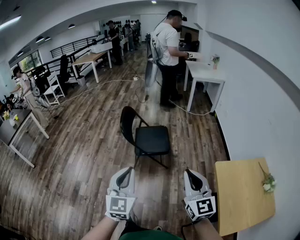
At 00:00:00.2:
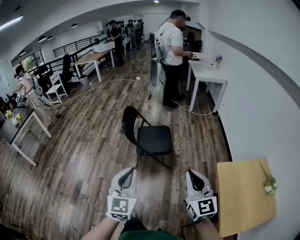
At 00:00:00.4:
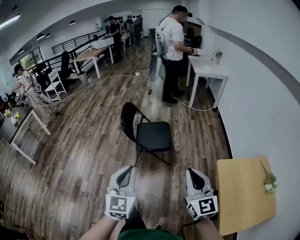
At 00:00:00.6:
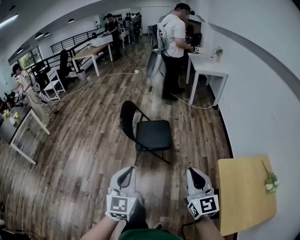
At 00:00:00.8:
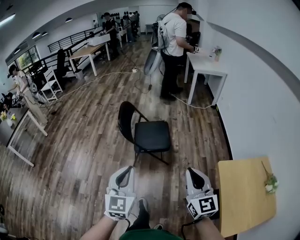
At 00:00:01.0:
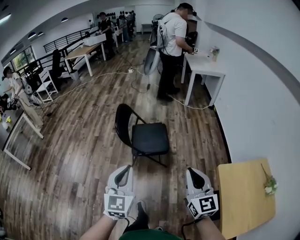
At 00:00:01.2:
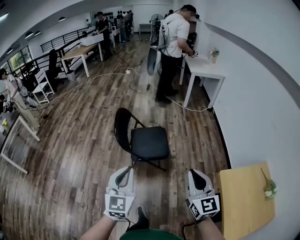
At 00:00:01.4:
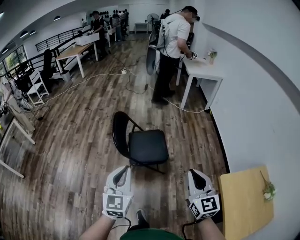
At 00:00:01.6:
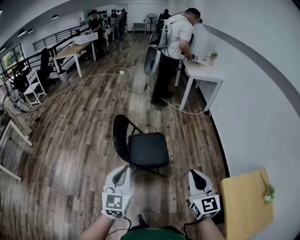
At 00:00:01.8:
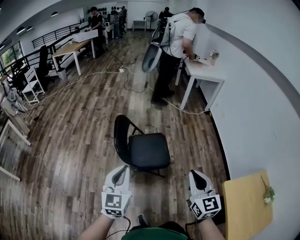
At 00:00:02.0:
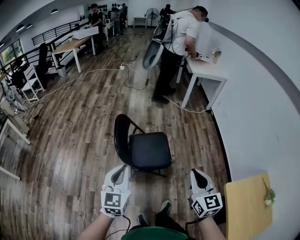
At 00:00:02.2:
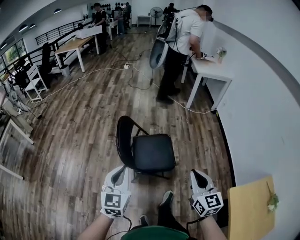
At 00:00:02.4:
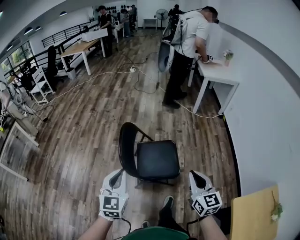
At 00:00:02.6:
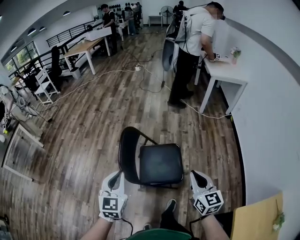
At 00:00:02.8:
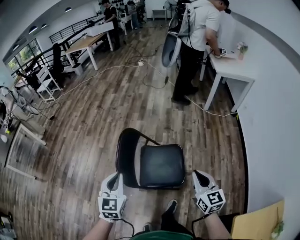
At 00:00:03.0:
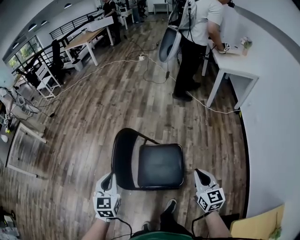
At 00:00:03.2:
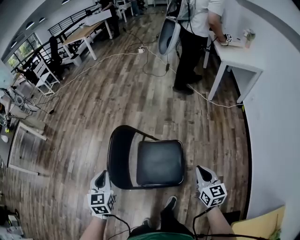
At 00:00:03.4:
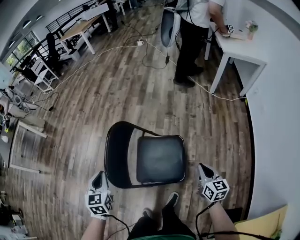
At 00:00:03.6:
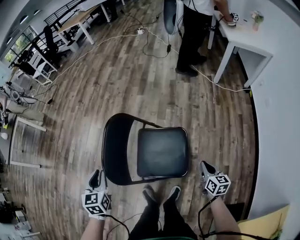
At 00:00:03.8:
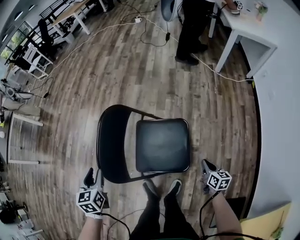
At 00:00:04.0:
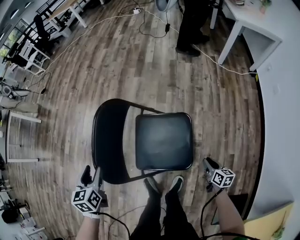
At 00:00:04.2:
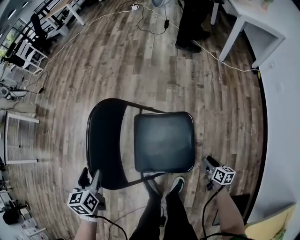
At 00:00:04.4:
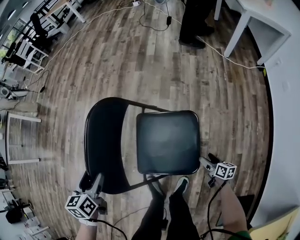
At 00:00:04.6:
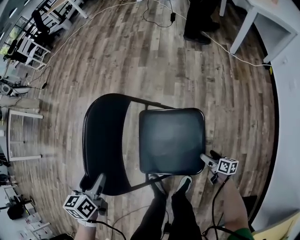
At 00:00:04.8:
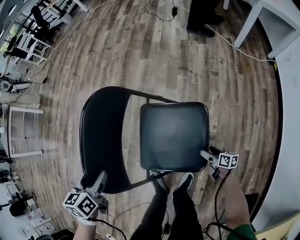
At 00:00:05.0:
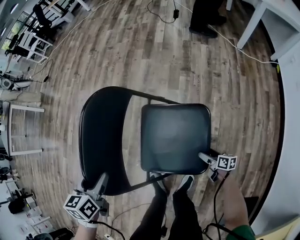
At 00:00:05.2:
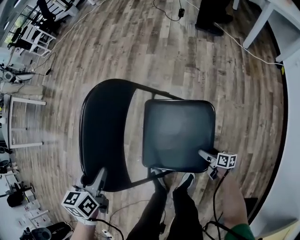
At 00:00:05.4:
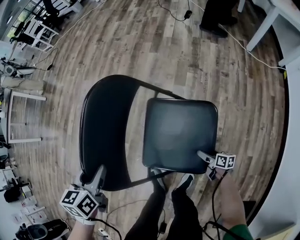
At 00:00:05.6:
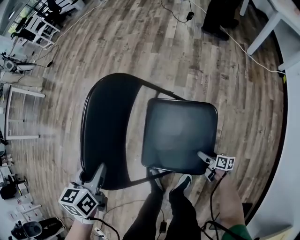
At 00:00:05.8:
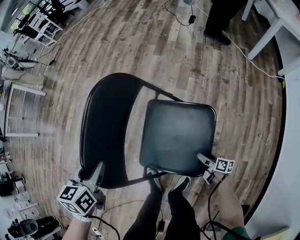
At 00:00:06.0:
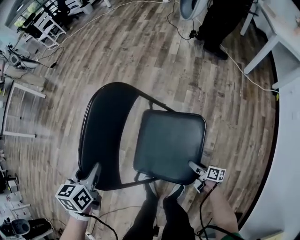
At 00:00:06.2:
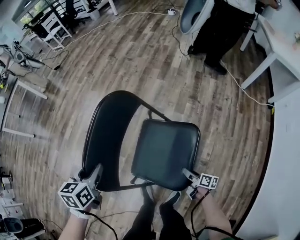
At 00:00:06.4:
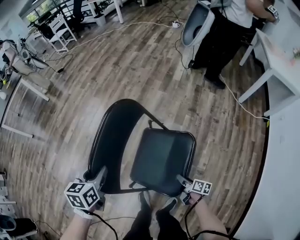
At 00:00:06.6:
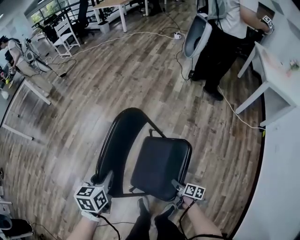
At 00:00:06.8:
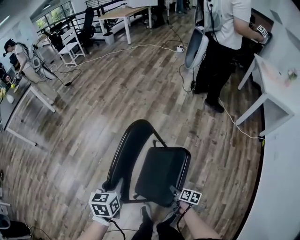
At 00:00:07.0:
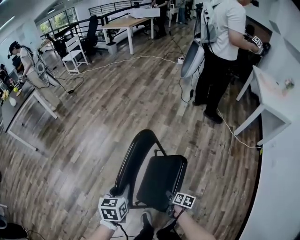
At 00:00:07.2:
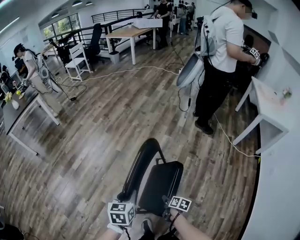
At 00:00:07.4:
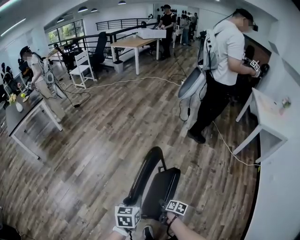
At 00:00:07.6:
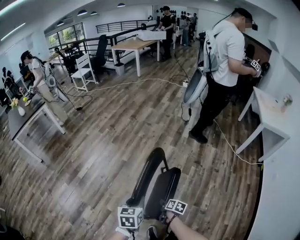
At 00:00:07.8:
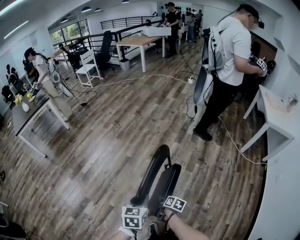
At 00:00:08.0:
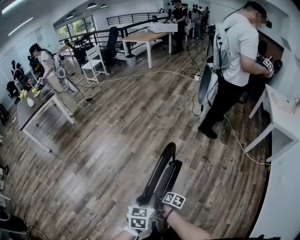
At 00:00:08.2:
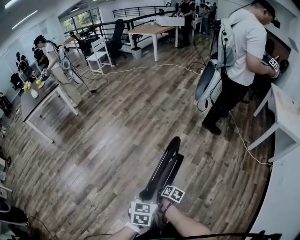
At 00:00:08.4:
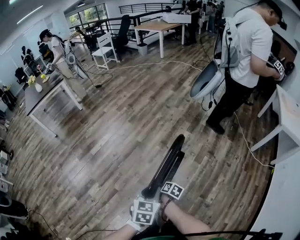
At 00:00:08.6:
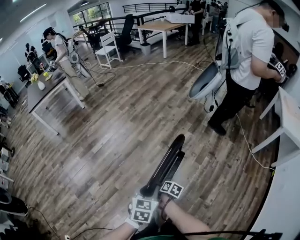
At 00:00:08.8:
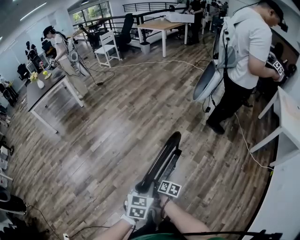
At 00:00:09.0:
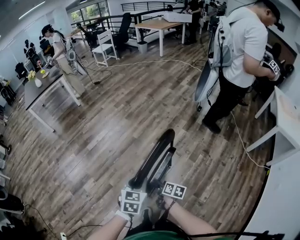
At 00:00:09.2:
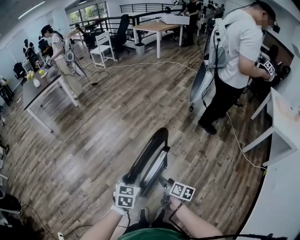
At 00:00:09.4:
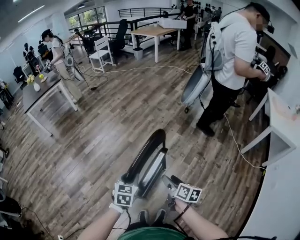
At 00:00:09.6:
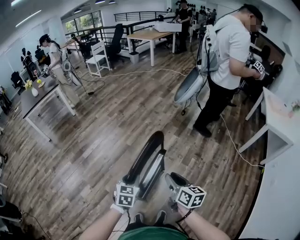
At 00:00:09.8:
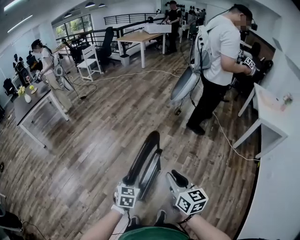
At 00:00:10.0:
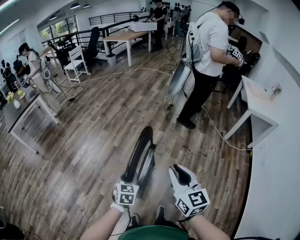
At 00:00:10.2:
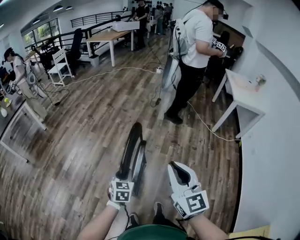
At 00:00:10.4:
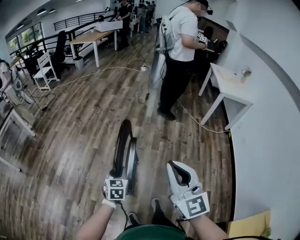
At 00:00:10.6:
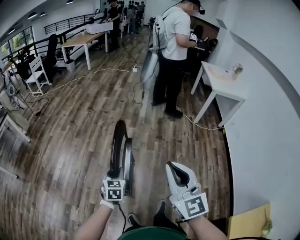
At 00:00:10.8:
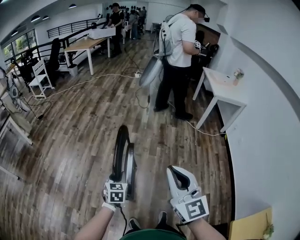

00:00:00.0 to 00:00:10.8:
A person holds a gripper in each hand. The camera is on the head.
00:00:00.0 to 00:00:01.6: Both grippers travel together forward, some 25 cm.
00:00:01.6 to 00:00:03.0: Both grippers travel together forward and downward, some 40 cm. The left gripper turns by roughly 30 degrees. Meanwhile the right gripper swivels approximately 20 degrees.
00:00:03.0 to 00:00:04.6: The left gripper goes roughly 25 cm downward and forward, rotates approximately 30 degrees, and opens its fingers, while the right gripper heads downward, covering about 50 cm, rotates around the line of its fingers by about 50 degrees, clockwise from behind, and opens.
00:00:04.6 to 00:00:06.2: The left gripper moves to the left, roughly 5 cm, and closes its fingers, while the right gripper moves to the left, forward and upward, approximately 15 cm, and closes its fingers.
00:00:06.2 to 00:00:07.8: The right gripper is displaced to the left, upward and forward by roughly 35 cm, and changes its angle by roughly 20 degrees; the left gripper goes some 15 cm upward.
00:00:07.8 to 00:00:09.2: The right gripper moves upward and to the right, about 15 cm, and swivels approximately 20 degrees.
00:00:09.2 to 00:00:10.8: The left gripper turns by roughly 20 degrees. Meanwhile the right gripper moves upward, approximately 40 cm, angles its fingers upward, by roughly 30 degrees, and closes its fingers.

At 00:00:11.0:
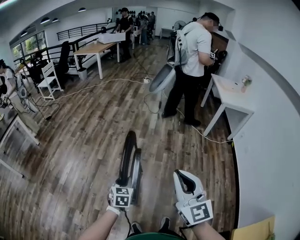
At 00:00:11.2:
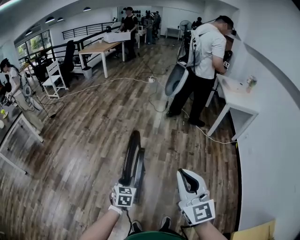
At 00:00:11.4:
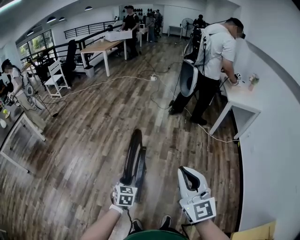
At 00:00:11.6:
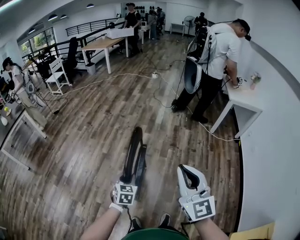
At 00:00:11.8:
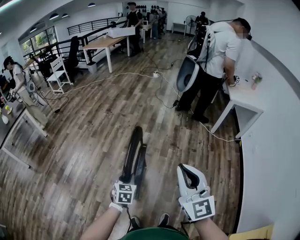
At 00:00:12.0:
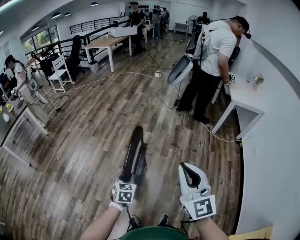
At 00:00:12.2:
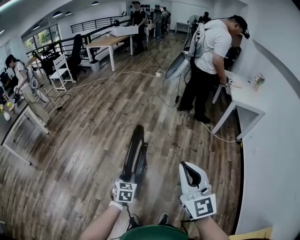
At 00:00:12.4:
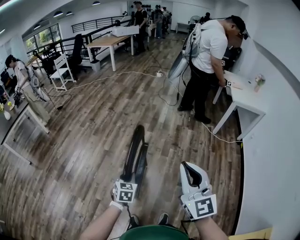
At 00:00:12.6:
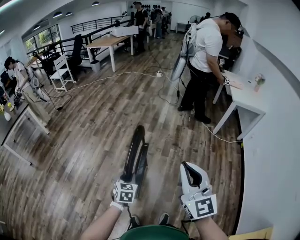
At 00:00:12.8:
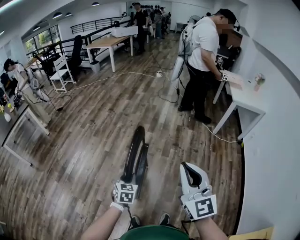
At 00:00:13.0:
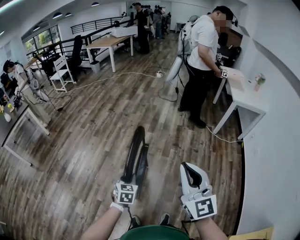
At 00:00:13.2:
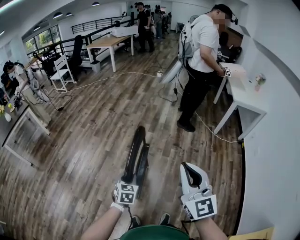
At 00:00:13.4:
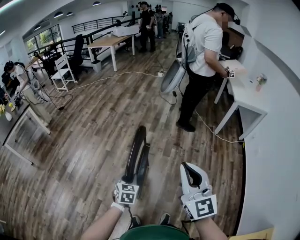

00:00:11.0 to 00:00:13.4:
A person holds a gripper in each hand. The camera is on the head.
00:00:11.0 to 00:00:12.2: The right gripper travels to the right by about 5 cm.
00:00:12.2 to 00:00:13.4: Both grippers stay put.

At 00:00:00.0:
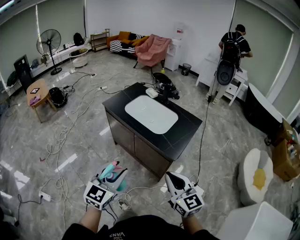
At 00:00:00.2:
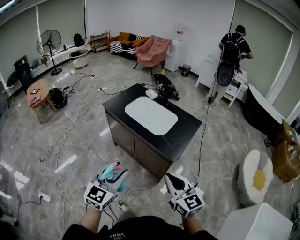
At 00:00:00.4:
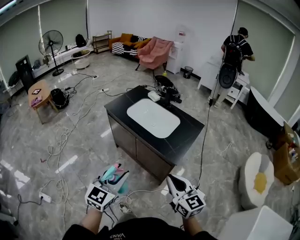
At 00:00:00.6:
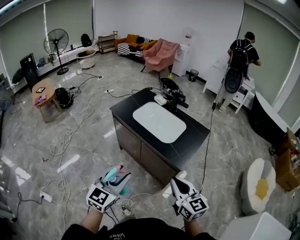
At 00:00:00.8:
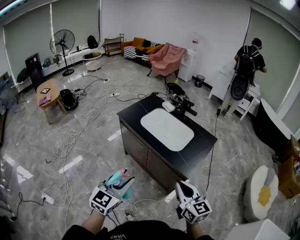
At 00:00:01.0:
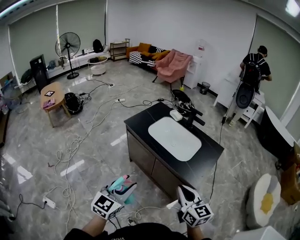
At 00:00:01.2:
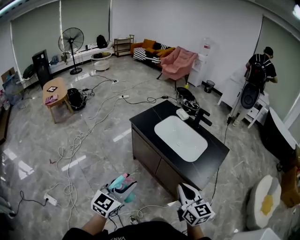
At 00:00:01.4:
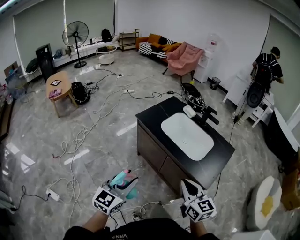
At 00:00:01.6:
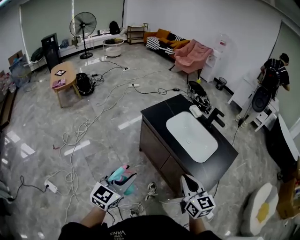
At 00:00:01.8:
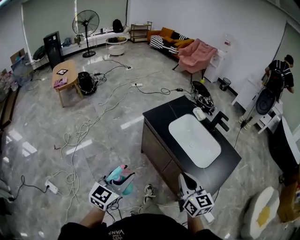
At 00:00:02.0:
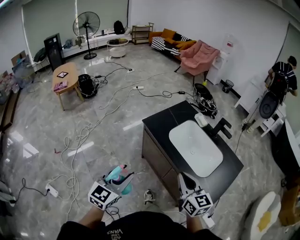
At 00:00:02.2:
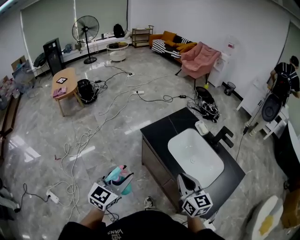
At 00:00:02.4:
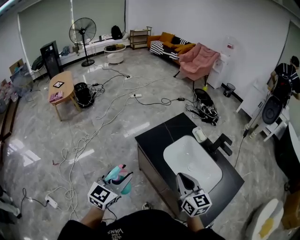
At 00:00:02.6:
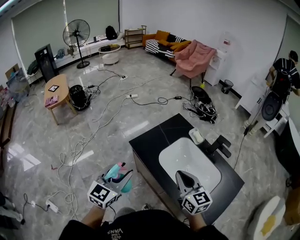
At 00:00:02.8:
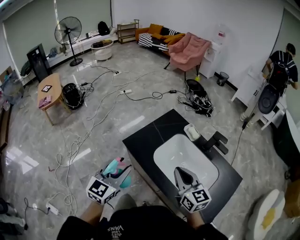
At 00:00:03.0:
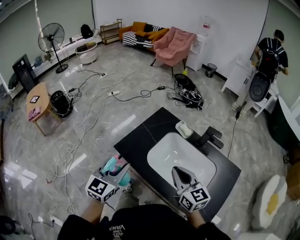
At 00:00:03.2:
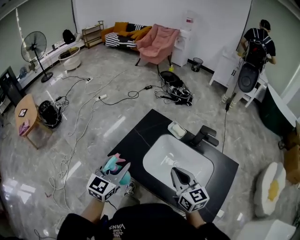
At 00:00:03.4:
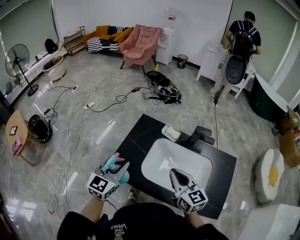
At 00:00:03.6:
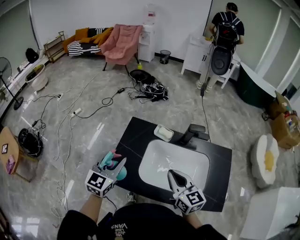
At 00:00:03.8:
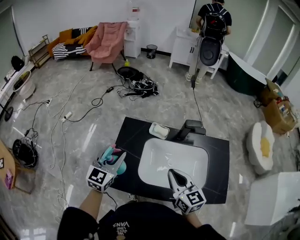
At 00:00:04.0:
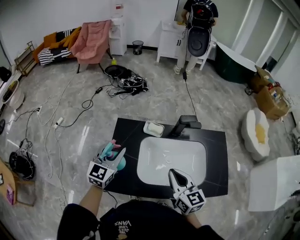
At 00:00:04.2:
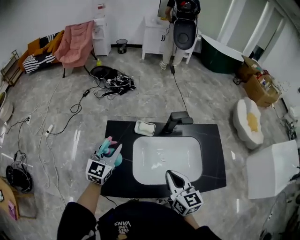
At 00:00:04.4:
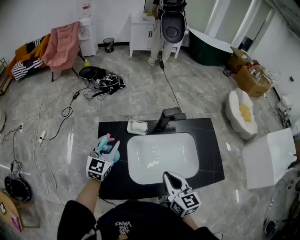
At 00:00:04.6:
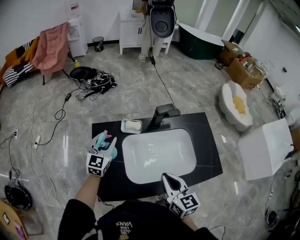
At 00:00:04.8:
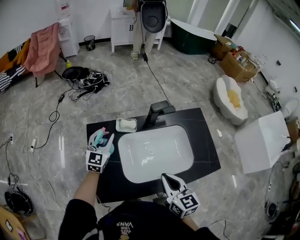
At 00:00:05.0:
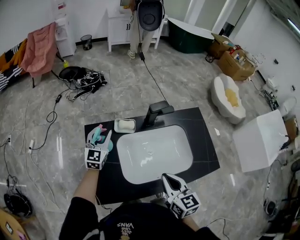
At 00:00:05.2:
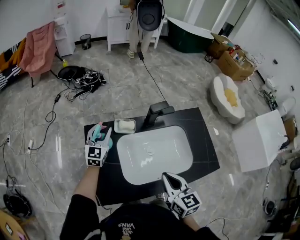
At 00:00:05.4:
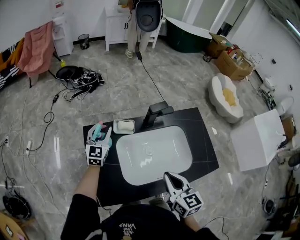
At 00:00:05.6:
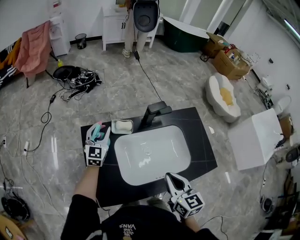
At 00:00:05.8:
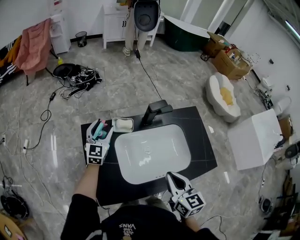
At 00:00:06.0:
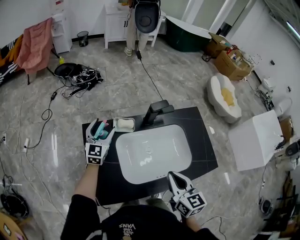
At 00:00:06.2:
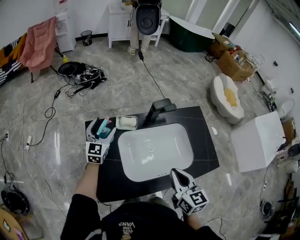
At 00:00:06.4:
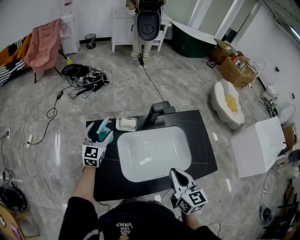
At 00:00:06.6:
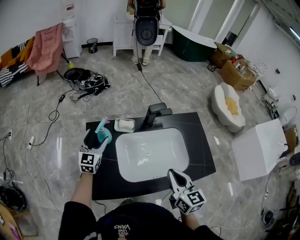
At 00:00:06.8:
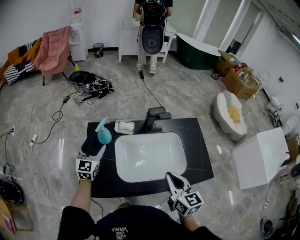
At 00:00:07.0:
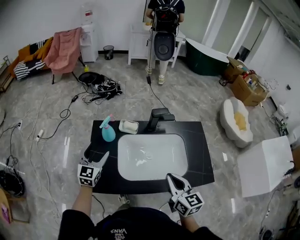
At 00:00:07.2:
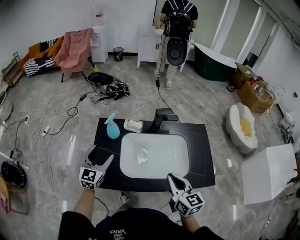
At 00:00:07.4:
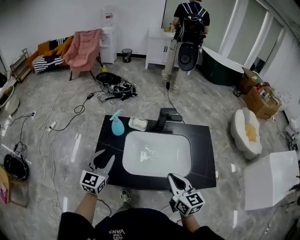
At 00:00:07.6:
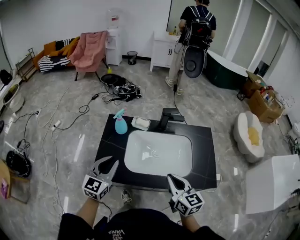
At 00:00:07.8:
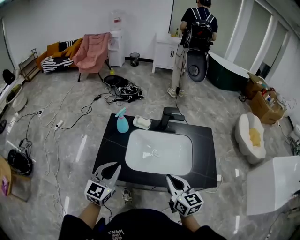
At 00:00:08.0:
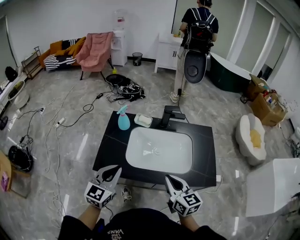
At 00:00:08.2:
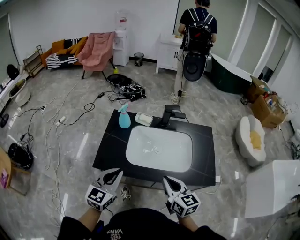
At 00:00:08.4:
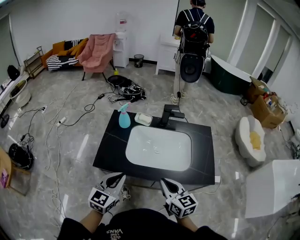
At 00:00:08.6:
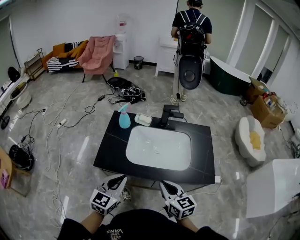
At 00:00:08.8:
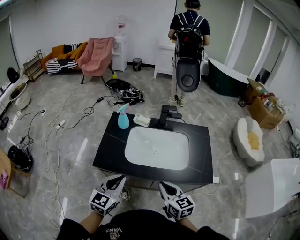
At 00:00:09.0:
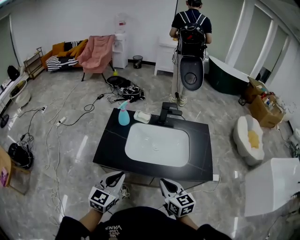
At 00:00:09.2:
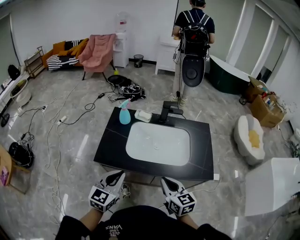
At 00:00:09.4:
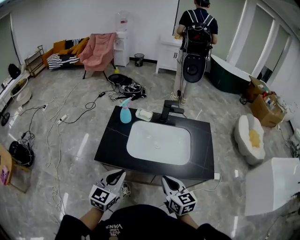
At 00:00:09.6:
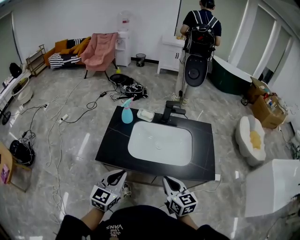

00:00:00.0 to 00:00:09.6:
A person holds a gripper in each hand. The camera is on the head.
00:00:00.0 to 00:00:01.6: The right gripper moves forward and to the left, some 25 cm. Meanwhile the left gripper travels to the left and forward by approximately 25 cm.
00:00:01.6 to 00:00:03.2: The two grippers go about 40 cm forward.
00:00:03.2 to 00:00:04.8: The right gripper turns by roughly 50 degrees; the left gripper moves approximately 35 cm, and changes its angle by about 40 degrees.
00:00:04.8 to 00:00:06.4: The left gripper opens.
00:00:06.4 to 00:00:08.0: The left gripper goes about 35 cm backward, and closes up; the right gripper shifts approximately 10 cm backward, and swivels some 30 degrees.
00:00:08.0 to 00:00:09.6: The two grippers go about 5 cm backward.
